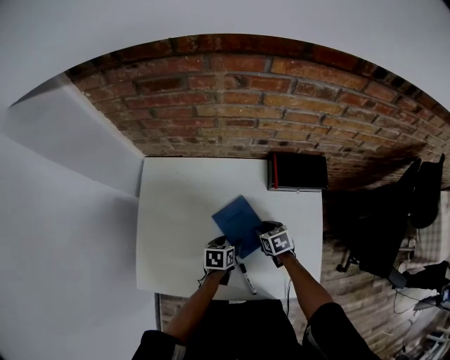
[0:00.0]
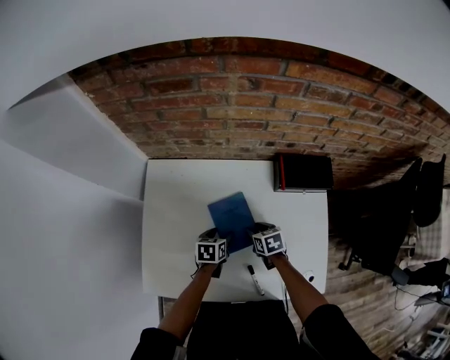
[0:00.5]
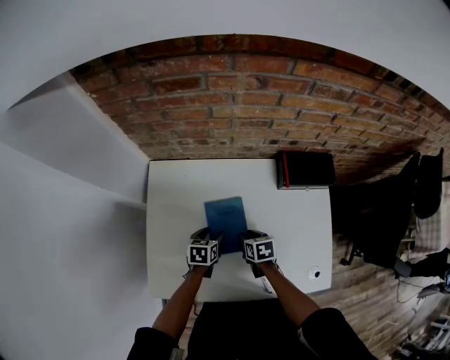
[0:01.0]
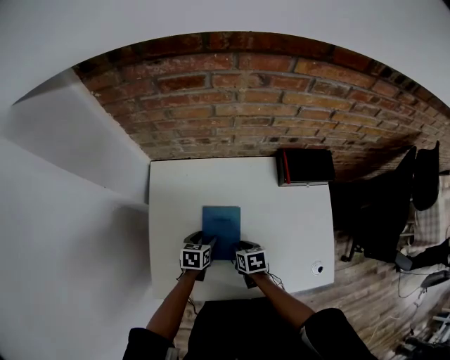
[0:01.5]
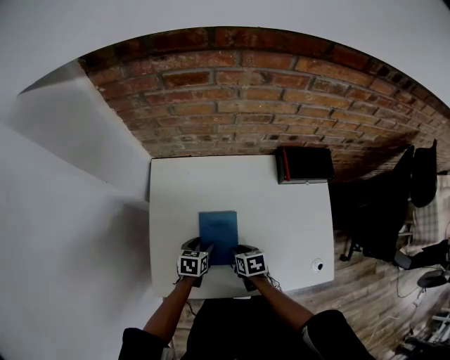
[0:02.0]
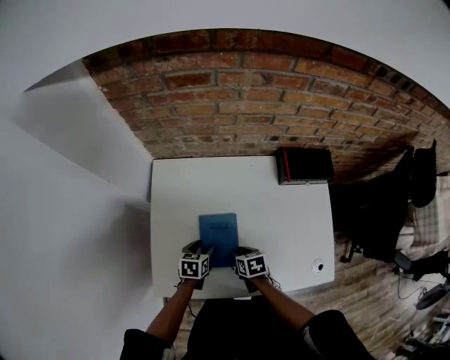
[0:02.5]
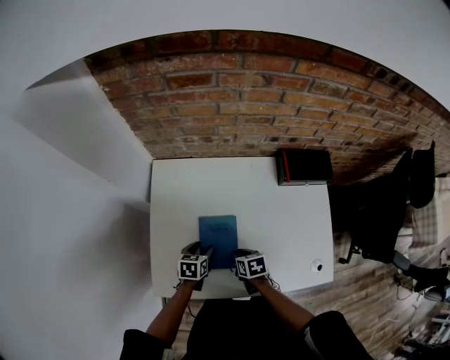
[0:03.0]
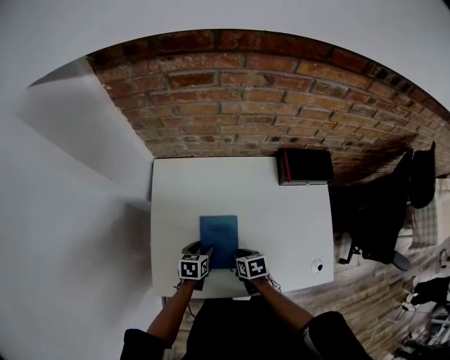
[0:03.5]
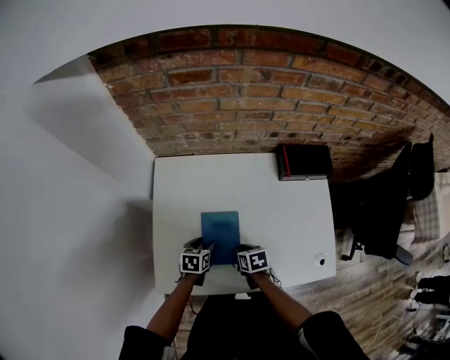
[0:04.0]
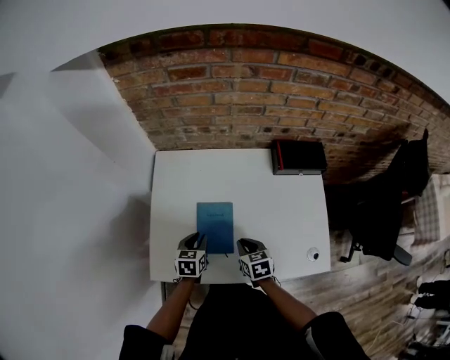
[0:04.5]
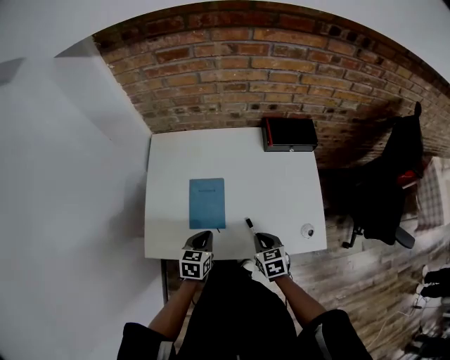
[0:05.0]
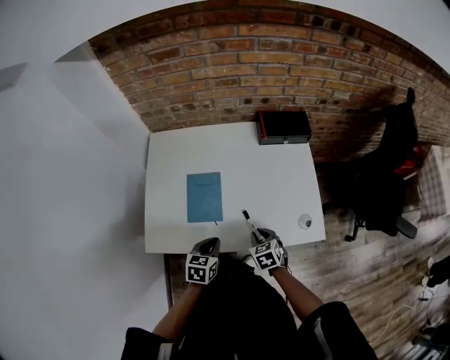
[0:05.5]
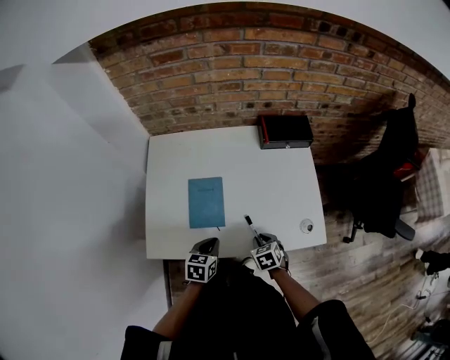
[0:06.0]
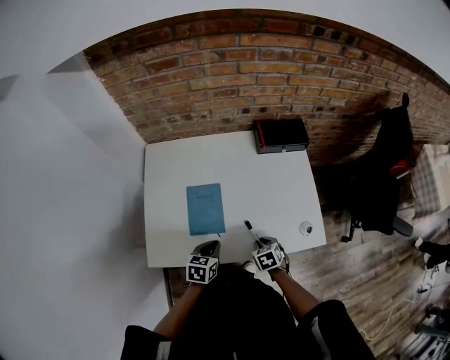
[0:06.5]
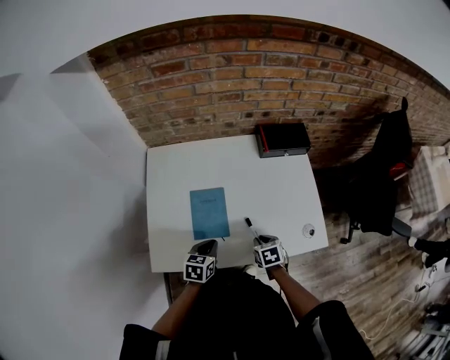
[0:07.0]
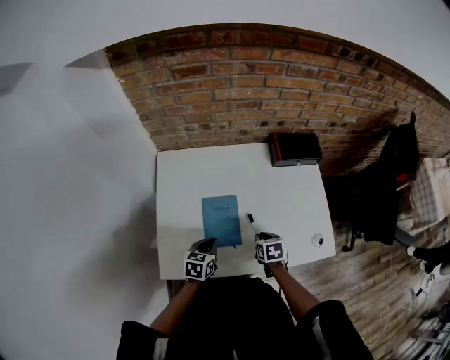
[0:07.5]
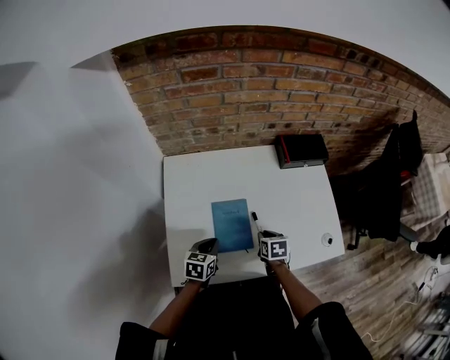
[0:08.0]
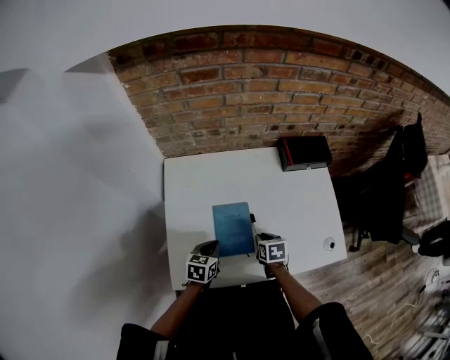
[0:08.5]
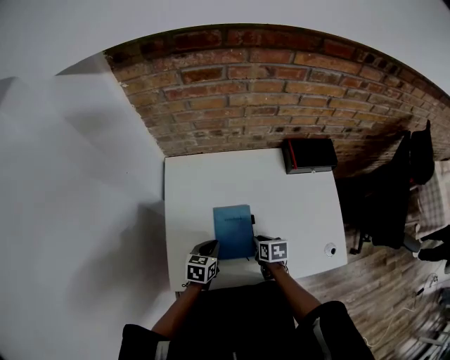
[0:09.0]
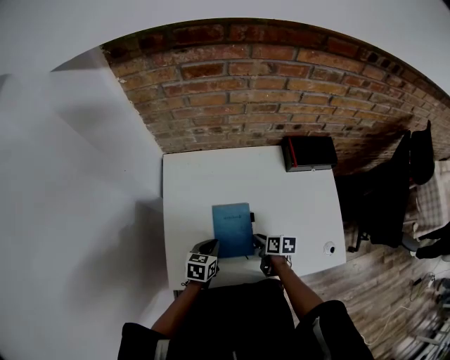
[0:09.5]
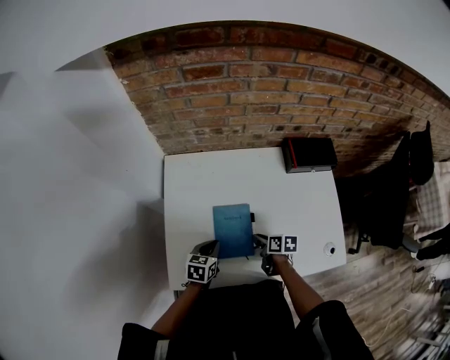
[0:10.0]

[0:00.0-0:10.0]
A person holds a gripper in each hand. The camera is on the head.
0:00.0 to 0:02.0: The right gripper shifts approximately 20 cm to the left and backward. The left gripper shifts about 20 cm to the left.
0:02.0 to 0:04.0: The grippers move only a little.
0:04.0 to 0:06.0: The left gripper goes roughly 20 cm backward, to the right and upward, and closes up. Meanwhile the right gripper goes roughly 20 cm backward and to the right, and rotates approximately 20 degrees.
0:06.0 to 0:08.0: The right gripper heads forward and to the left, covering some 15 cm, and swivels approximately 30 degrees, while the left gripper is displaced to the left and forward by roughly 15 cm.
0:08.0 to 0:10.0: The right gripper swivels some 30 degrees.

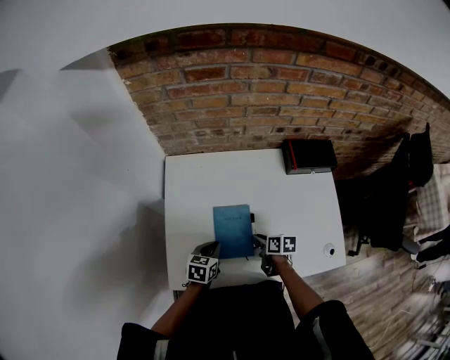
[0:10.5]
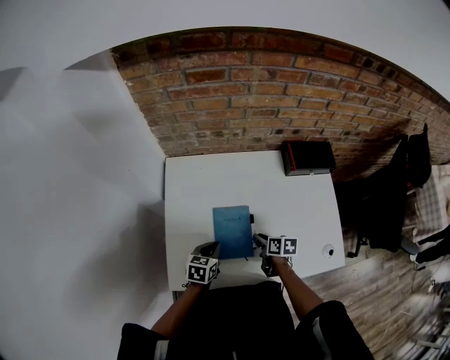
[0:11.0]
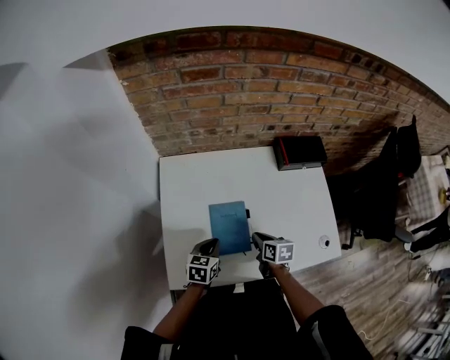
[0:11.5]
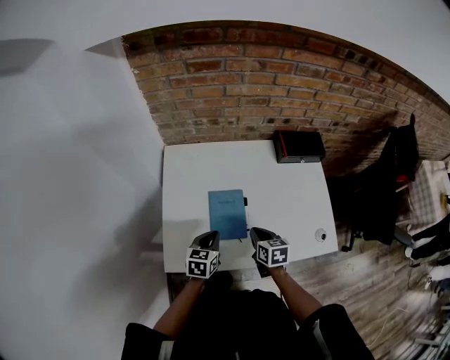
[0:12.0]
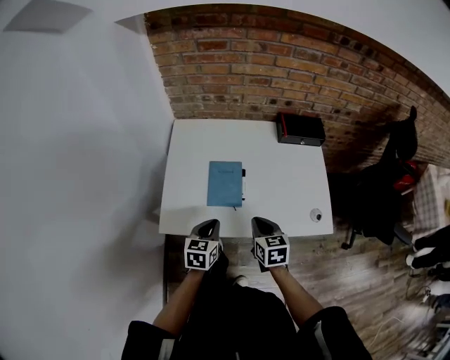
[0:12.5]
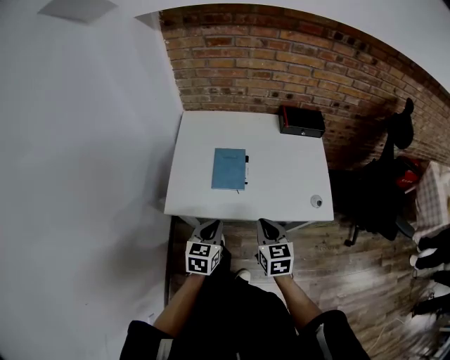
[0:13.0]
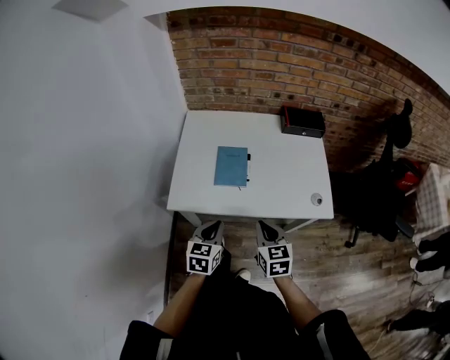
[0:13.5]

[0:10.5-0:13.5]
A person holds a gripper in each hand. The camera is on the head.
0:10.5 to 0:12.0: The right gripper moves upward and backward, about 10 cm, and changes its angle by roughly 30 degrees. The left gripper goes approximately 5 cm upward.
0:12.0 to 0:13.5: The right gripper goes some 25 cm backward and upward, and rotates some 20 degrees. The left gripper is displaced backward by about 25 cm.

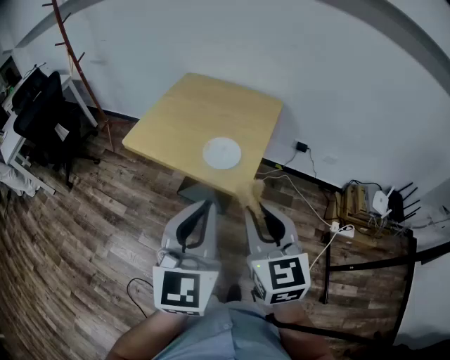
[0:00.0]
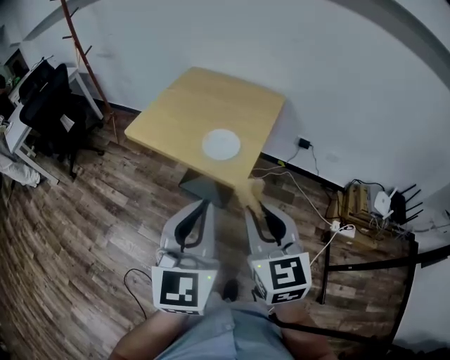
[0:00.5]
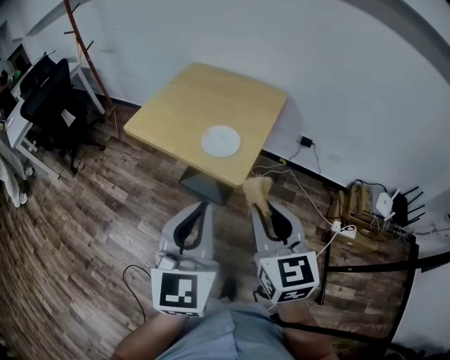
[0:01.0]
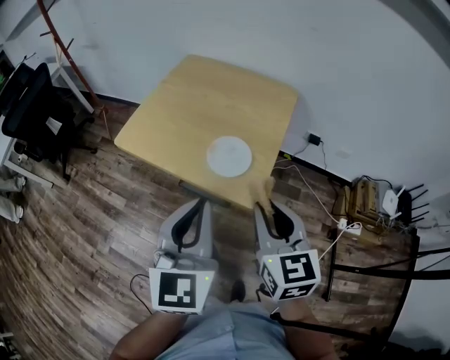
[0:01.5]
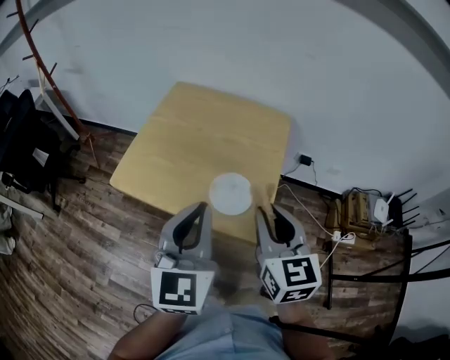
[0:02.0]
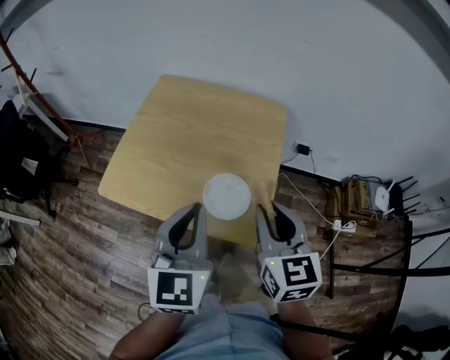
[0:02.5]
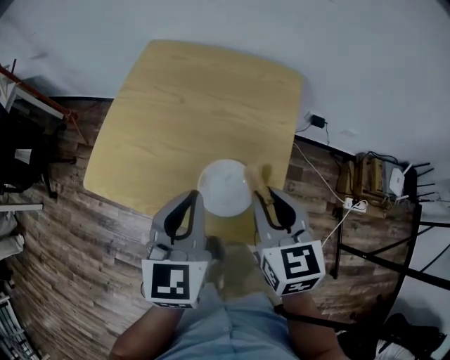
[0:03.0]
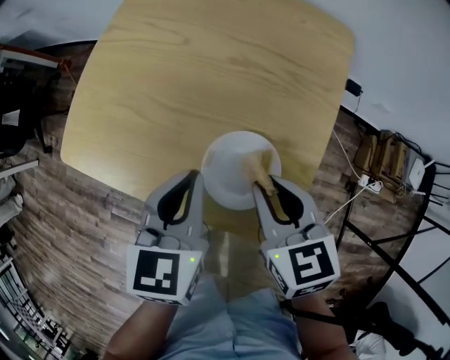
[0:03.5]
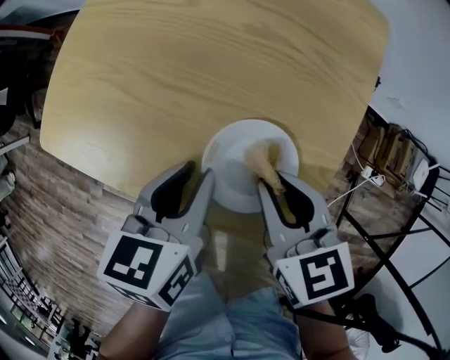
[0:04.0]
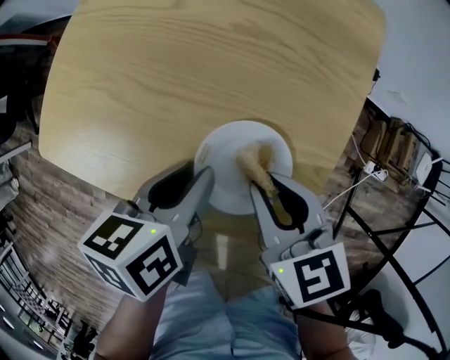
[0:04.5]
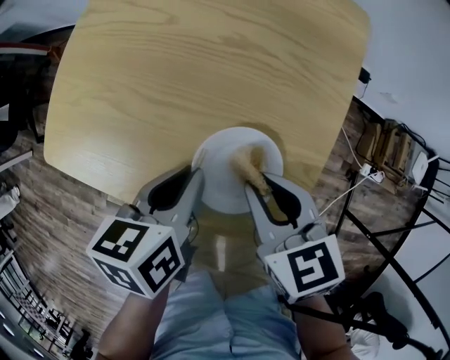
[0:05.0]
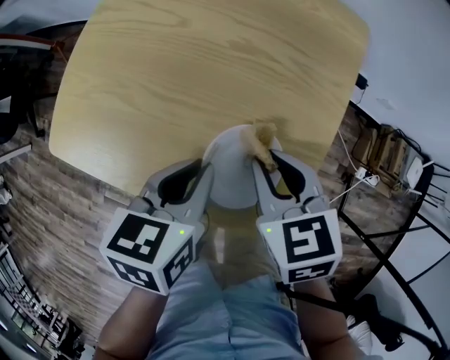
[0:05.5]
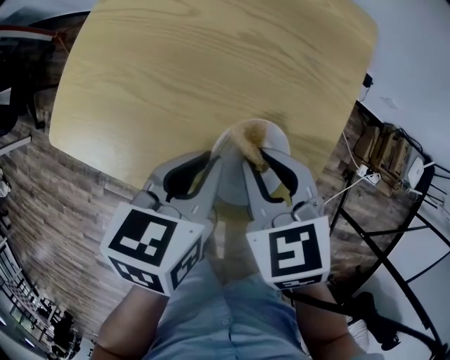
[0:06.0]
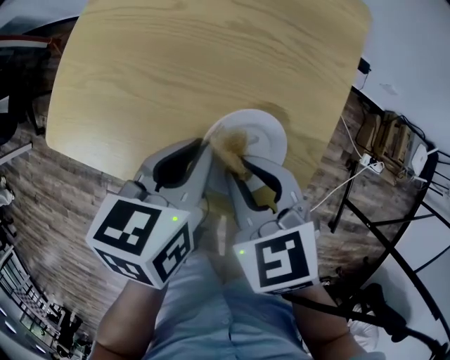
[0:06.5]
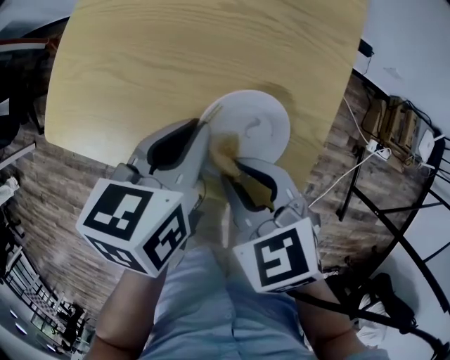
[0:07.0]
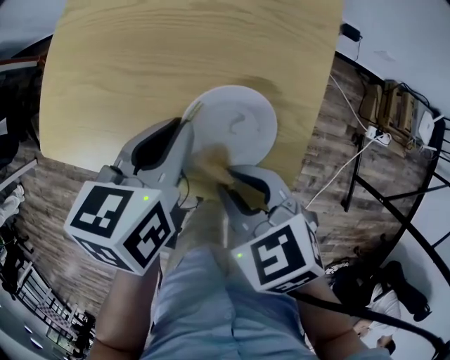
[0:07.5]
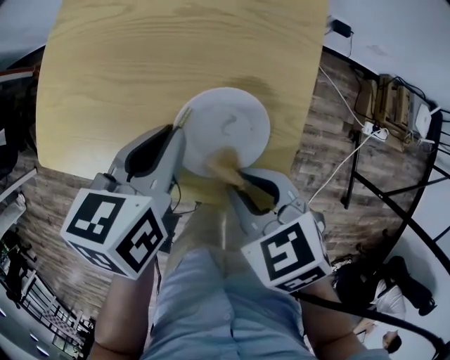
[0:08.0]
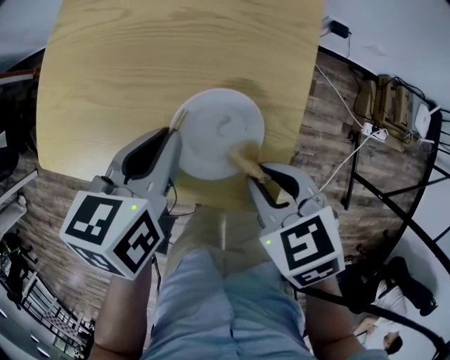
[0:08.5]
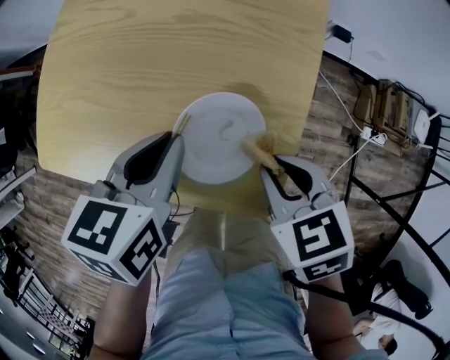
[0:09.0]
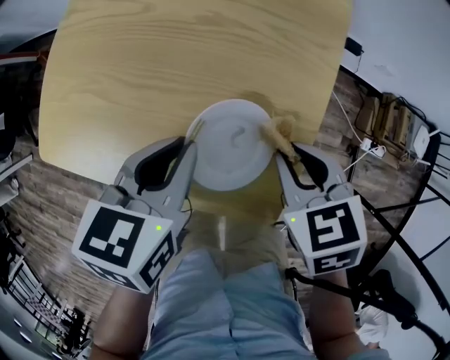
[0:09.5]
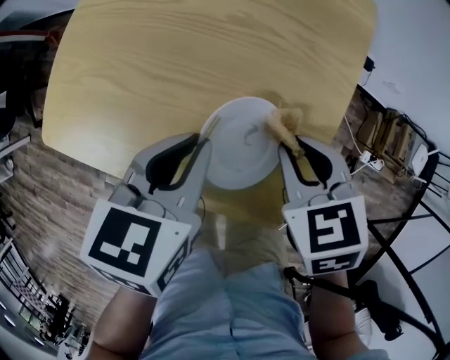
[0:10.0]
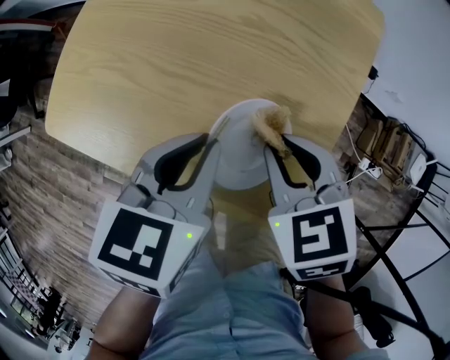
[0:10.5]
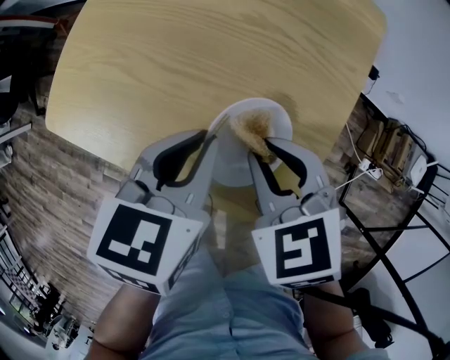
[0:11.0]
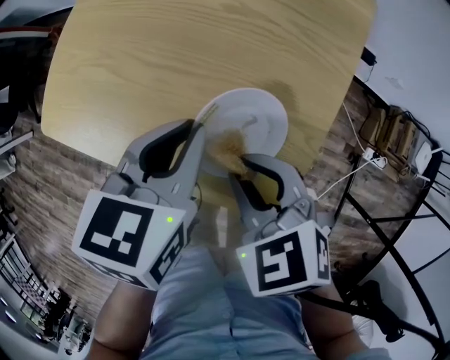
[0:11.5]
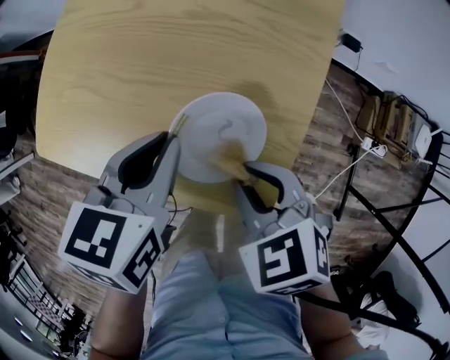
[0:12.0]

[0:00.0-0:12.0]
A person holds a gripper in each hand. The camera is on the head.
0:00.0 to 0:02.0: Both grippers travel together forward, about 20 cm.
0:02.0 to 0:04.0: The grippers both shift downward and forward by some 25 cm. The left gripper tilts its fingers roughly 40 degrees downward, and opens; the right gripper changes its angle by roughly 30 degrees.
0:04.0 to 0:06.0: The grippers move only a little.
0:06.0 to 0:08.0: The right gripper moves backward, roughly 10 cm.
0:08.0 to 0:10.0: The right gripper travels forward by approximately 10 cm.
0:10.0 to 0:12.0: The right gripper travels backward by about 10 cm.

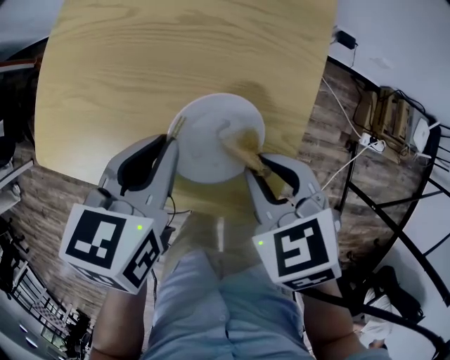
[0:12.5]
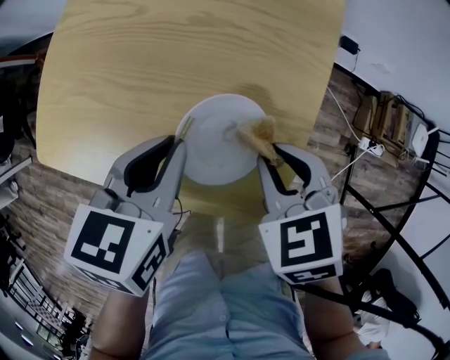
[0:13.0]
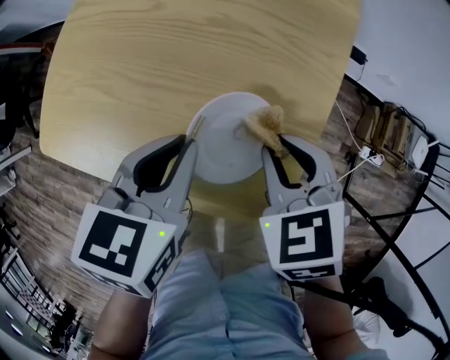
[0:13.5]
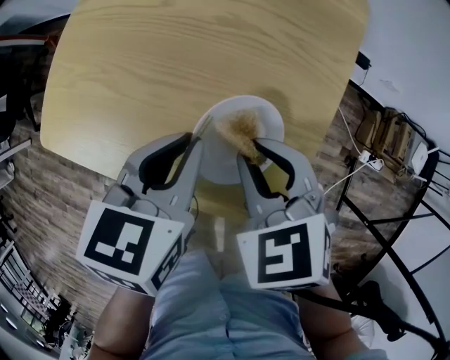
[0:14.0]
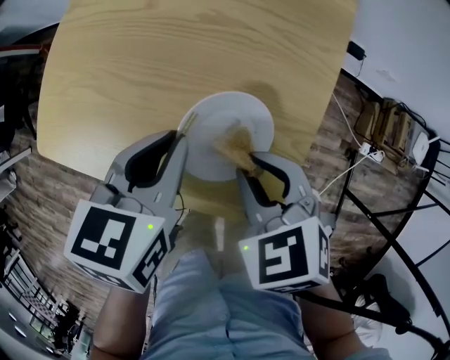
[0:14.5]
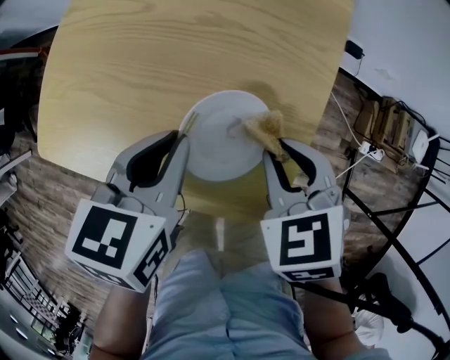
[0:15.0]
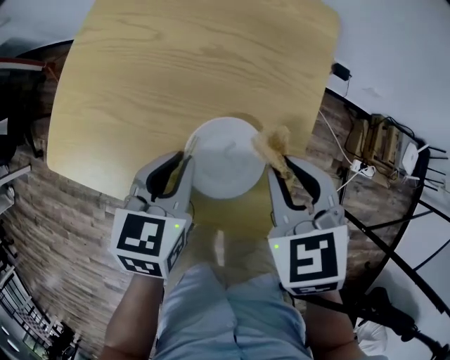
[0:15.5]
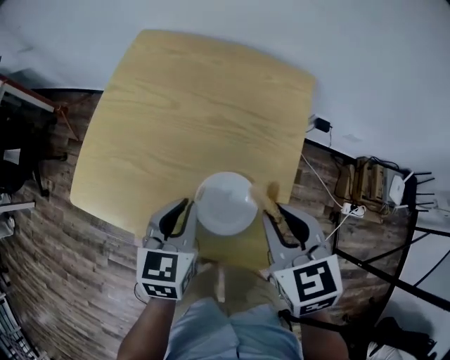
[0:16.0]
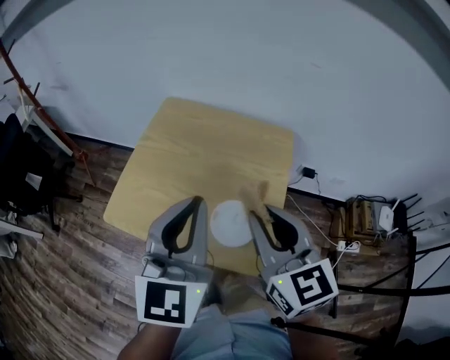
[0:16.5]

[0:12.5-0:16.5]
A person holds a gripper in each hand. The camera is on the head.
0:14.5 to 0:16.5: Both grippers move upward, some 25 cm. The right gripper points its fingers approximately 40 degrees further upward, while the left gripper tilts its fingers about 50 degrees upward.
